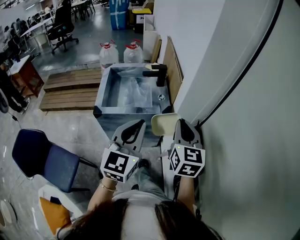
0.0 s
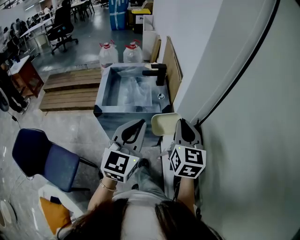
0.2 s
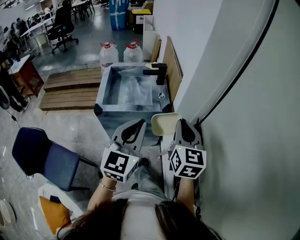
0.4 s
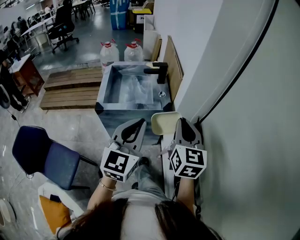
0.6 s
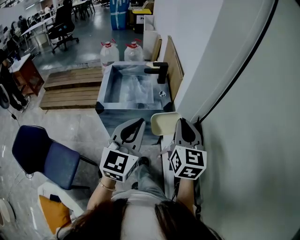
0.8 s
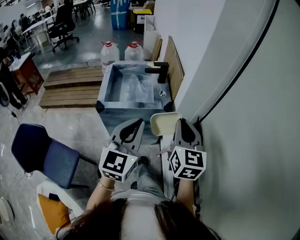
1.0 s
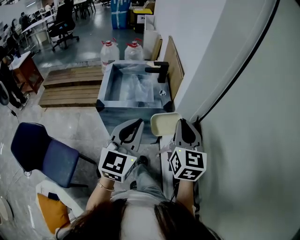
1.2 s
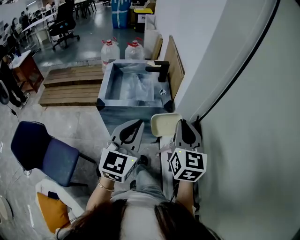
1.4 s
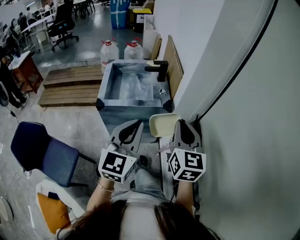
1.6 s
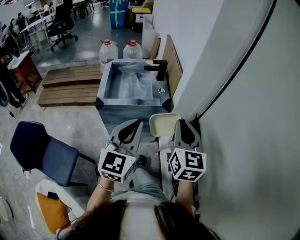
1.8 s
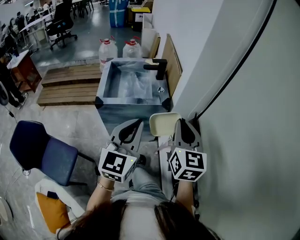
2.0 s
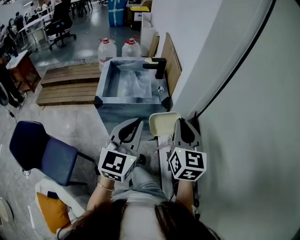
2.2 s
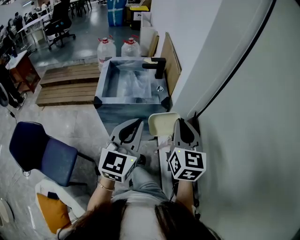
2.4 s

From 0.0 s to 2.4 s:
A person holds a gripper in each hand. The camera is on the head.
From 0.0 s to 1.2 s: The grippers both shift backward by some 5 cm.
From 1.2 s to 2.4 s: The grippers move only a little.

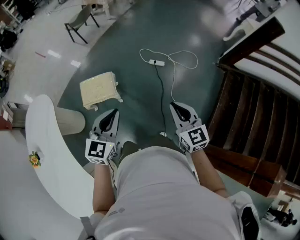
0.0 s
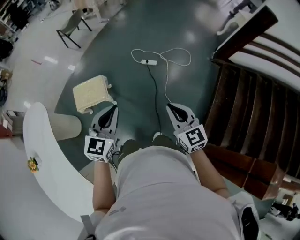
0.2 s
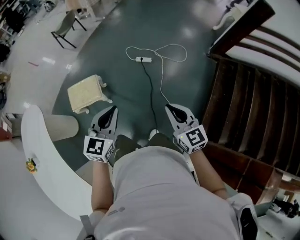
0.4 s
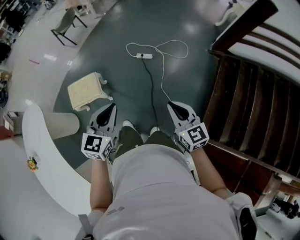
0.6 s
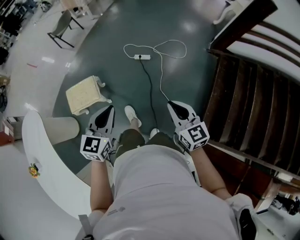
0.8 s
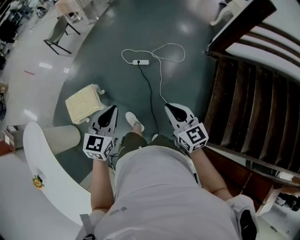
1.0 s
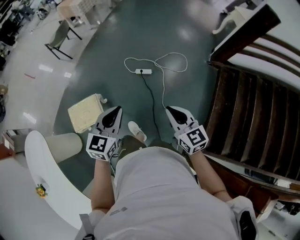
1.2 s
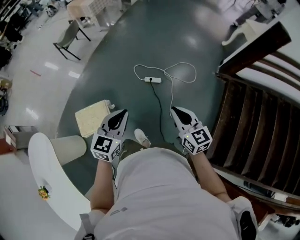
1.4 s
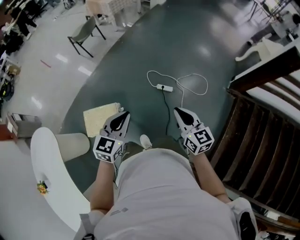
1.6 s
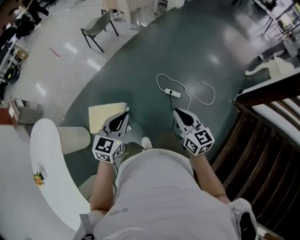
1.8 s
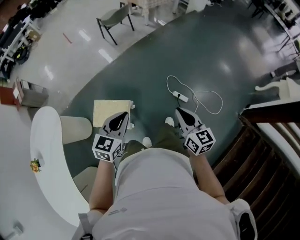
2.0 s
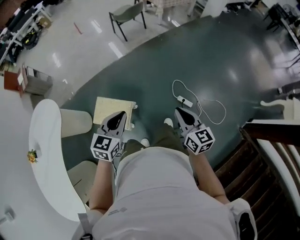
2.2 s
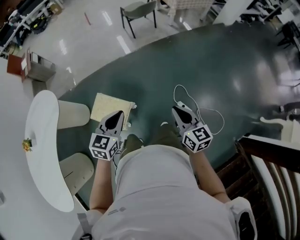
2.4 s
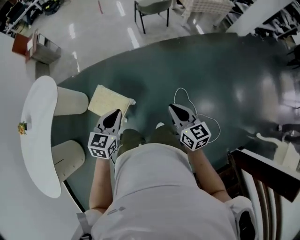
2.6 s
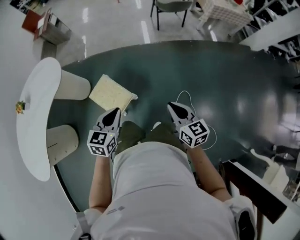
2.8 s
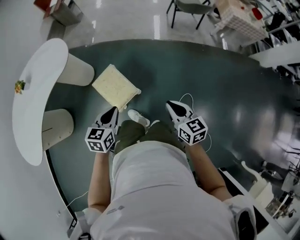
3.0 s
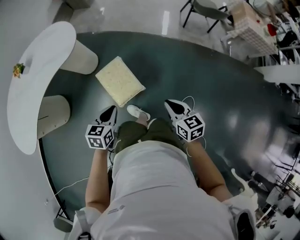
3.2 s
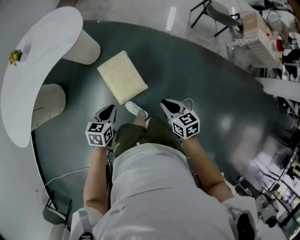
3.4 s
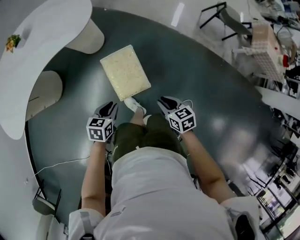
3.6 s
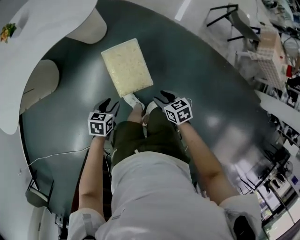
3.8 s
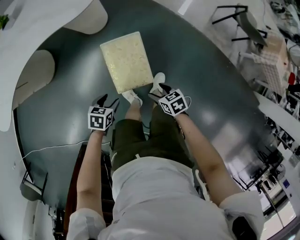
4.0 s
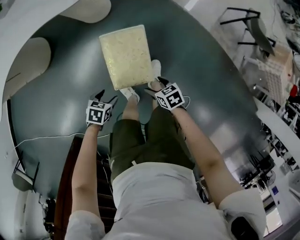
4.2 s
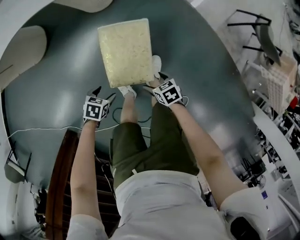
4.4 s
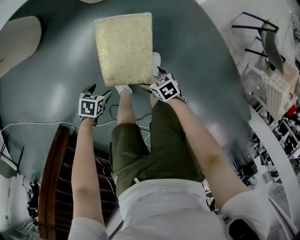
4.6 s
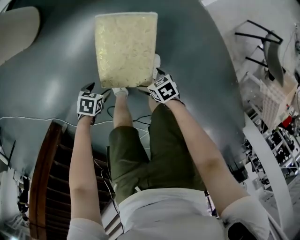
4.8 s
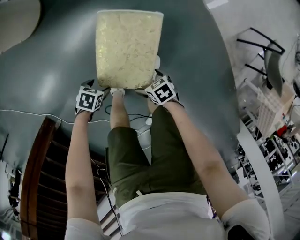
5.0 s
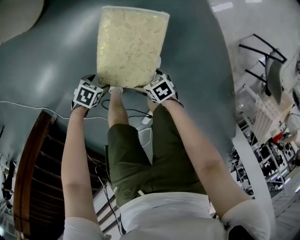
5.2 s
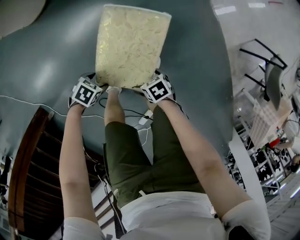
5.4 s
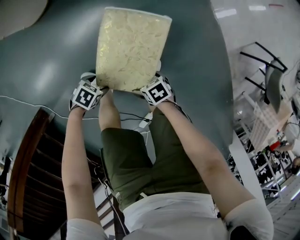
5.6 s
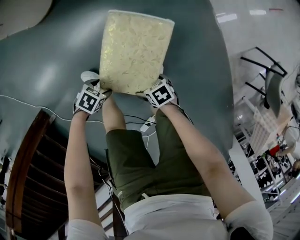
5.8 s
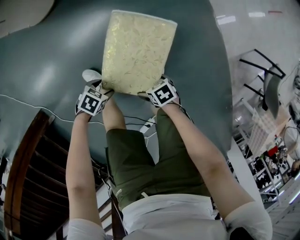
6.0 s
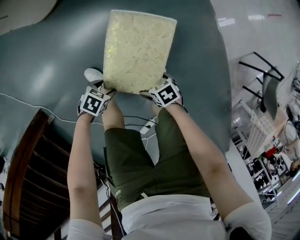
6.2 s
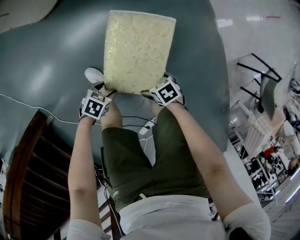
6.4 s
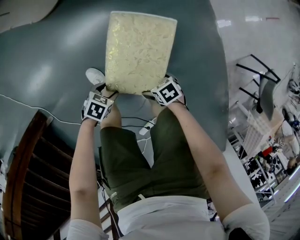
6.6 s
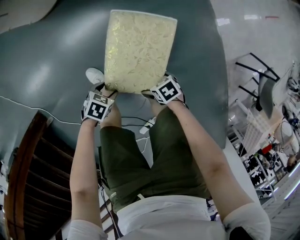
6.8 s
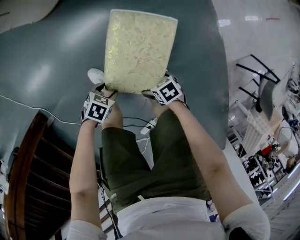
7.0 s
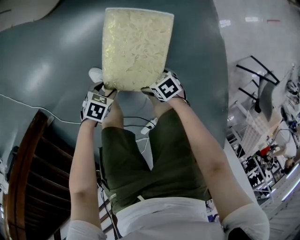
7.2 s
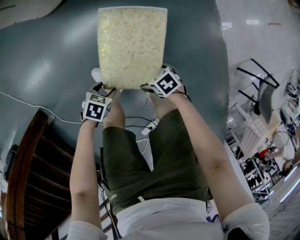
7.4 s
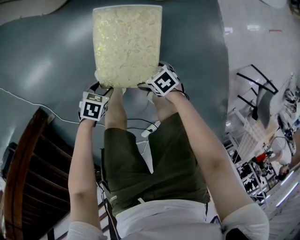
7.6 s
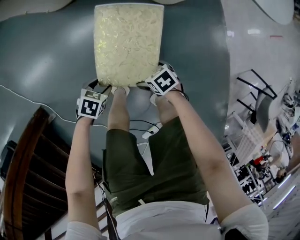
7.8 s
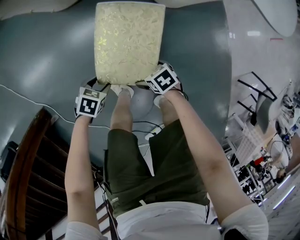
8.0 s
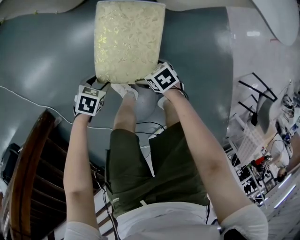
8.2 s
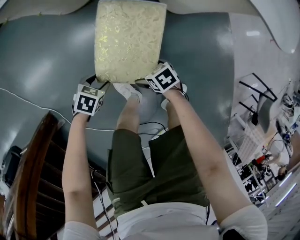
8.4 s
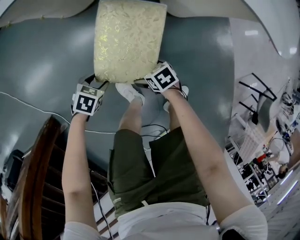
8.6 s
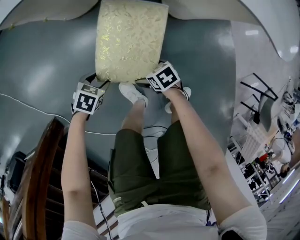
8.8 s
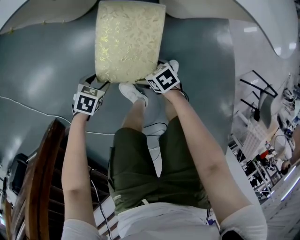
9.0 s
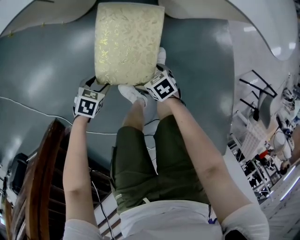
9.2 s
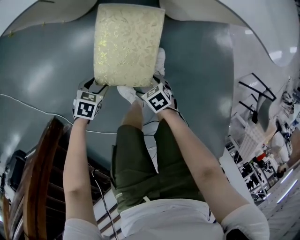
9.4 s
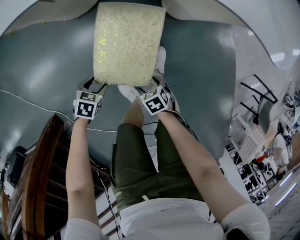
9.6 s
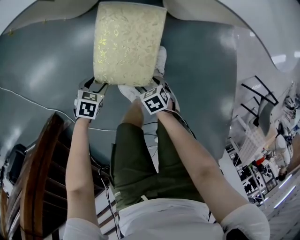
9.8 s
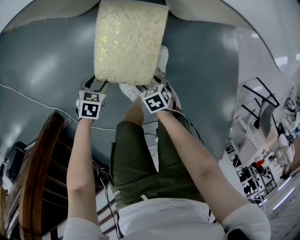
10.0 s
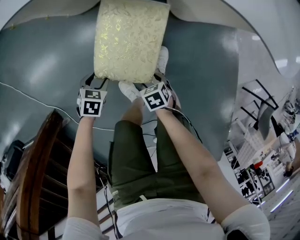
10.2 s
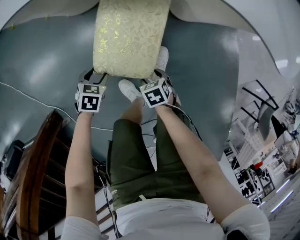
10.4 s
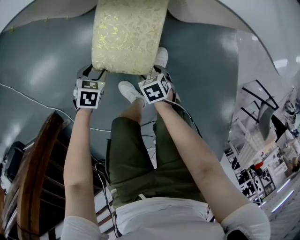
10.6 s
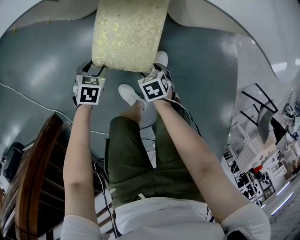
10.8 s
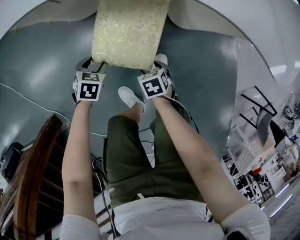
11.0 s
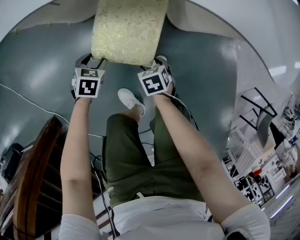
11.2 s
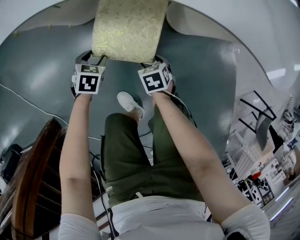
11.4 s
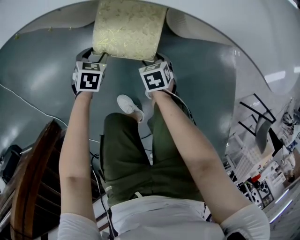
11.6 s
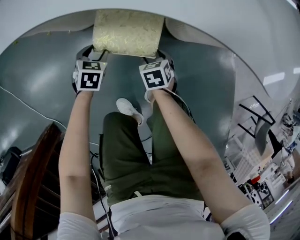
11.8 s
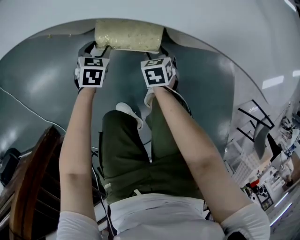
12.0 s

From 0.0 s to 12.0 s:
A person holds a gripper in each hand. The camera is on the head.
From 0.0 s to 1.6 s: The grippers both shift forward by approximately 30 cm.
From 1.6 s to 3.0 s: The left gripper moves approximately 25 cm, and swivels roughly 70 degrees, while the right gripper shifts by roughly 40 cm, and changes its angle by about 60 degrees.
From 3.0 s to 4.4 s: The grippers both shift downward by about 50 cm. The right gripper tilts its fingers some 30 degrees downward, and opens its fingers; the left gripper tilts its fingers roughly 30 degrees downward, and opens.
From 4.4 s to 6.0 s: The two grippers go approximately 15 cm downward. The right gripper changes its angle by about 30 degrees.
From 6.0 s to 7.6 s: The right gripper travels backward and to the right by some 20 cm; the left gripper heads to the right and backward, covering about 15 cm.
From 7.6 s to 9.0 s: The right gripper moves roughly 15 cm; the left gripper moves approximately 15 cm.
From 9.0 s to 10.4 s: The right gripper closes its fingers.
From 10.4 s to 12.0 s: The right gripper shifts by approximately 25 cm, and swivels approximately 20 degrees, while the left gripper shifts by roughly 25 cm.

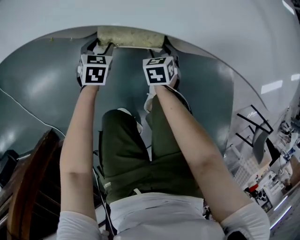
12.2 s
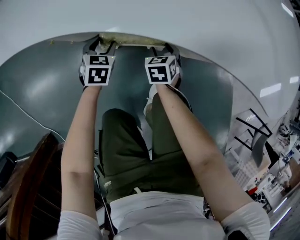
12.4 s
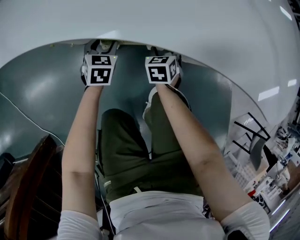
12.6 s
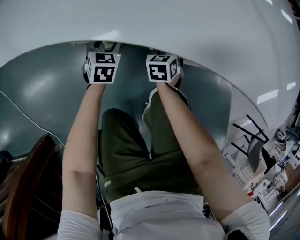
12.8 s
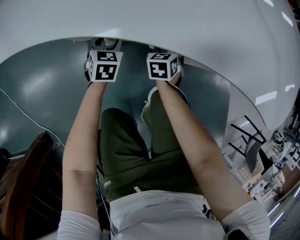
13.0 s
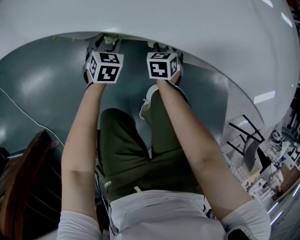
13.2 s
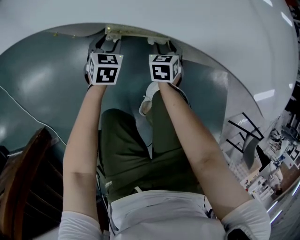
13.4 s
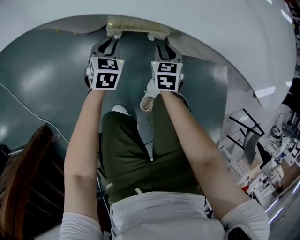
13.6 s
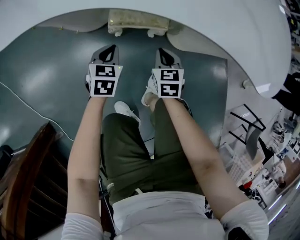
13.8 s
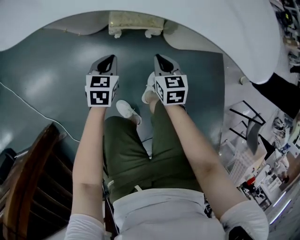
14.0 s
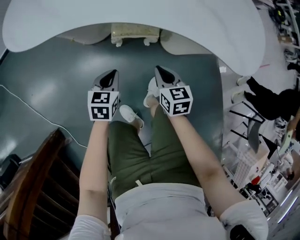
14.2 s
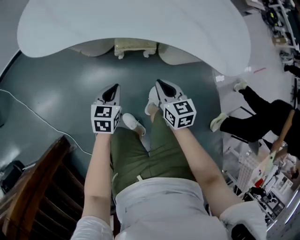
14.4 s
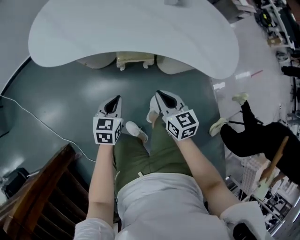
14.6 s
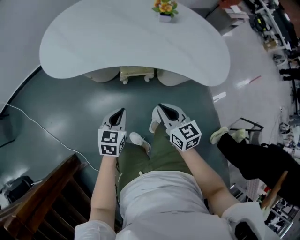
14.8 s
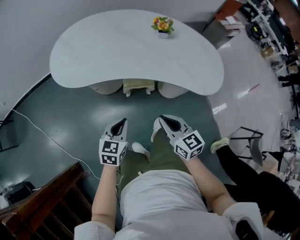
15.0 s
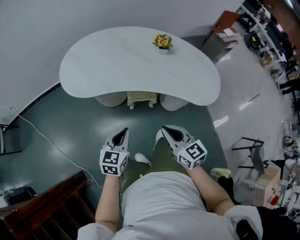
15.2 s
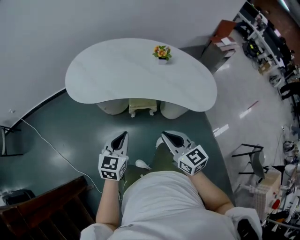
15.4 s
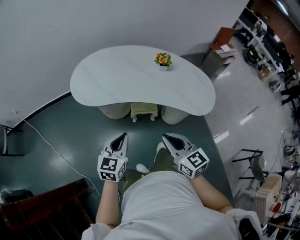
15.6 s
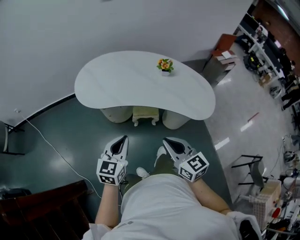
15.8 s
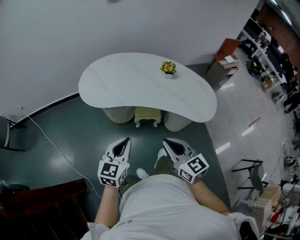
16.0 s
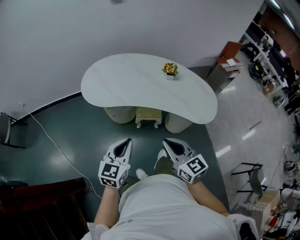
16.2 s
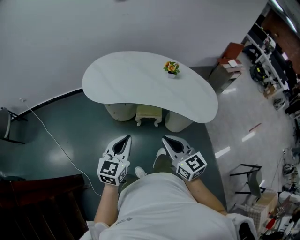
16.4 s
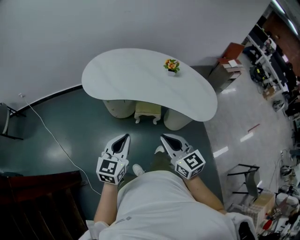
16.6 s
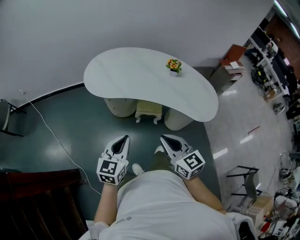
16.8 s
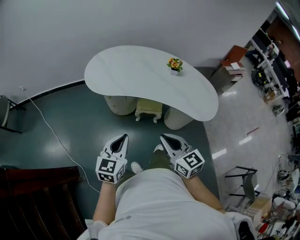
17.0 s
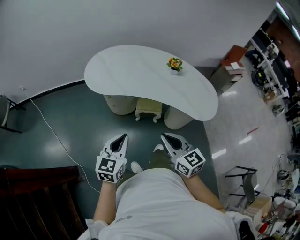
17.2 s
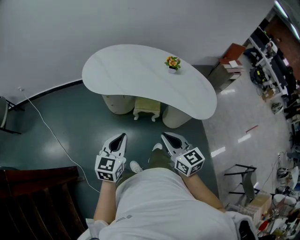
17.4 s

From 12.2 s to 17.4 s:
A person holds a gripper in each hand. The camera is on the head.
From 12.2 s to 14.0 s: Both grippers travel together upward and backward, roughly 15 cm. The left gripper closes. Meanwhile the right gripper closes up.
From 14.0 s to 15.6 s: Both grippers travel together upward, some 50 cm. The left gripper changes its angle by roughly 30 degrees. The right gripper changes its angle by approximately 30 degrees.
From 15.6 s to 17.4 s: The left gripper shifts approximately 5 cm backward.

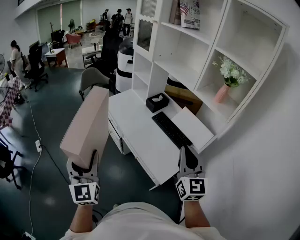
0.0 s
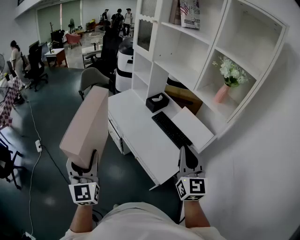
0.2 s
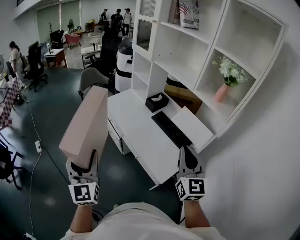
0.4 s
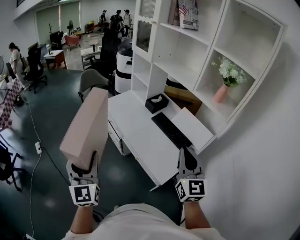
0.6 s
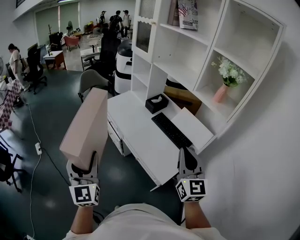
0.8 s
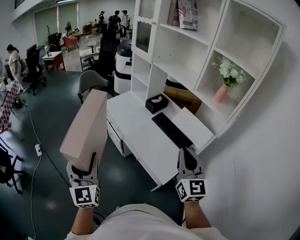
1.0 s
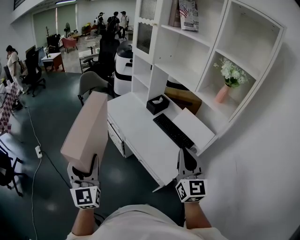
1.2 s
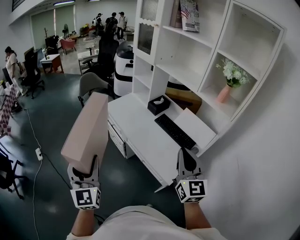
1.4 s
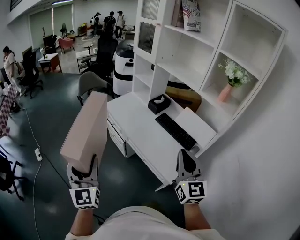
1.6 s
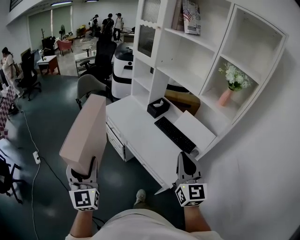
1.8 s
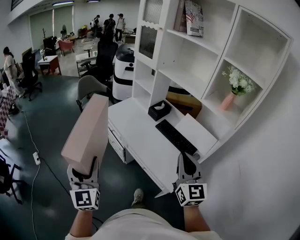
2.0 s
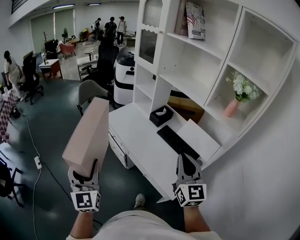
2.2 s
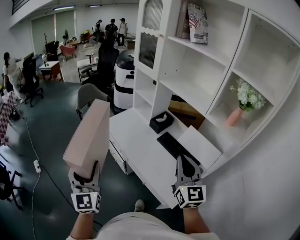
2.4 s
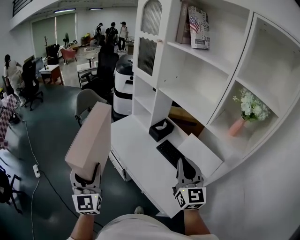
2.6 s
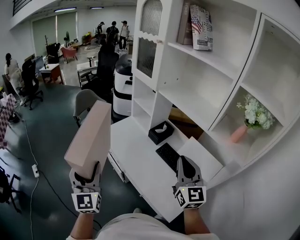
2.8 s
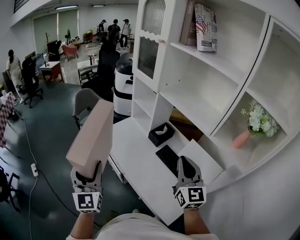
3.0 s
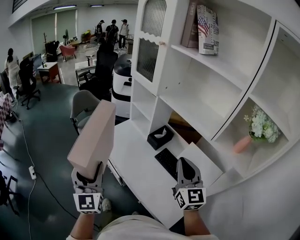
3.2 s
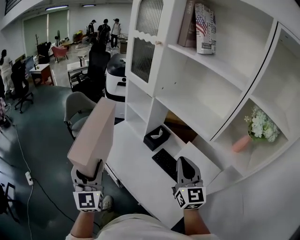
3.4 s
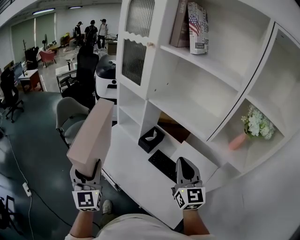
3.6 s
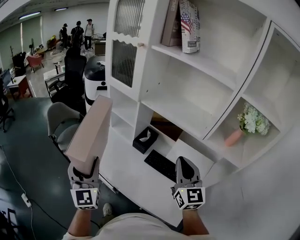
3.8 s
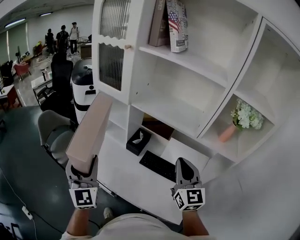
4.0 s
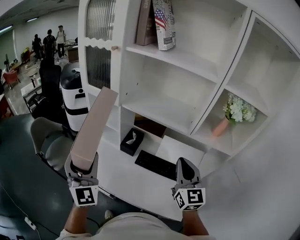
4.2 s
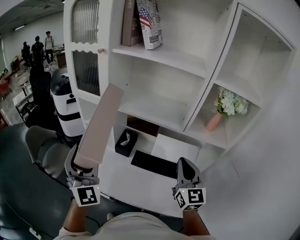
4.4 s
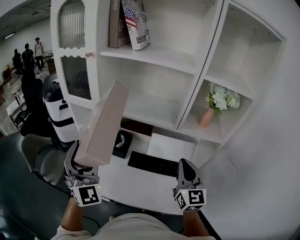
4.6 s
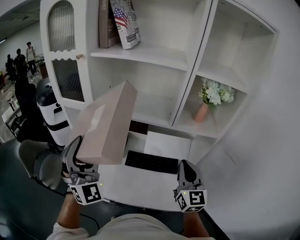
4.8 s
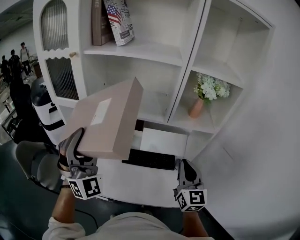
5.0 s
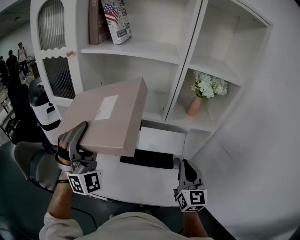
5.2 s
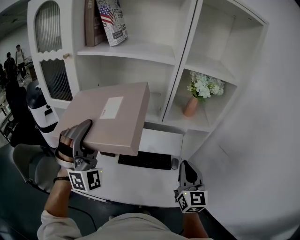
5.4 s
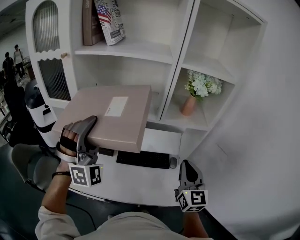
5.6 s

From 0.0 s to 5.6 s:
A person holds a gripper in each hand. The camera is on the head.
From 0.0 s to 1.4 s: The grippers both shift to the left by approximately 5 cm.
From 1.4 s to 2.8 s: The grippers both shift forward by about 25 cm.
From 2.8 s to 4.2 s: The left gripper changes place by roughly 25 cm, and changes its angle by about 30 degrees, while the right gripper ends up some 10 cm from where it was, and changes its angle by about 30 degrees.
From 4.2 s to 5.6 s: The right gripper moves roughly 15 cm, and turns by roughly 20 degrees. The left gripper ends up about 20 cm from where it was, and twists some 50 degrees clockwise, seen from behind.
